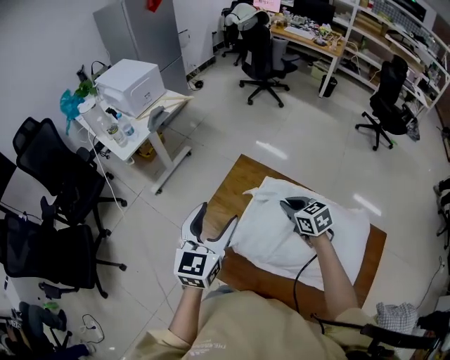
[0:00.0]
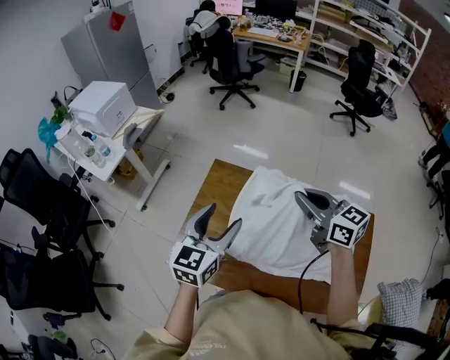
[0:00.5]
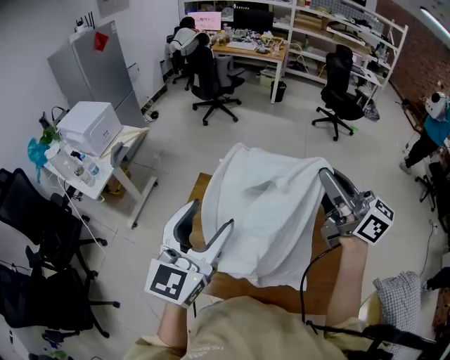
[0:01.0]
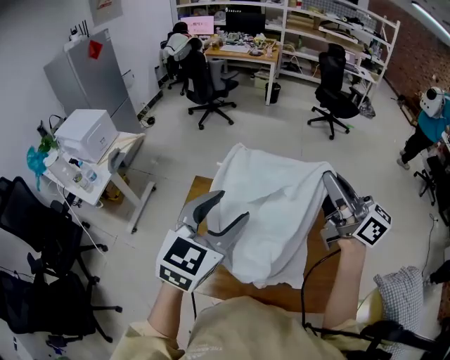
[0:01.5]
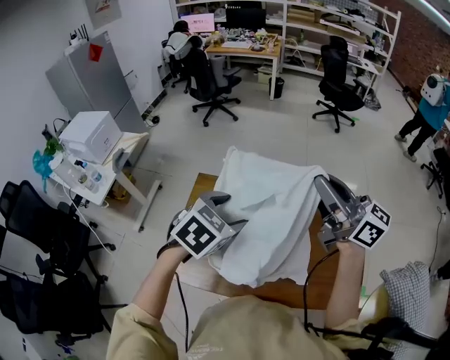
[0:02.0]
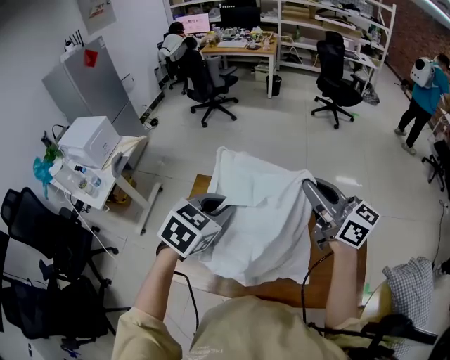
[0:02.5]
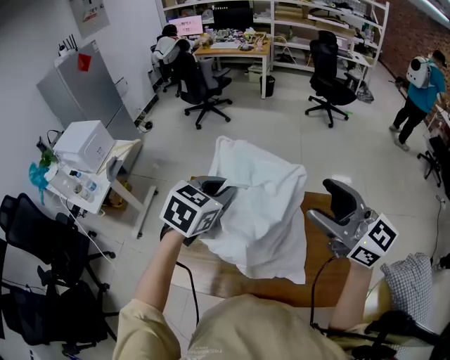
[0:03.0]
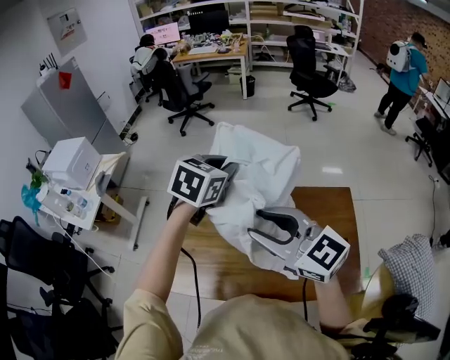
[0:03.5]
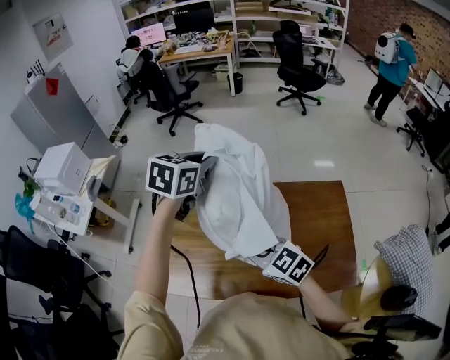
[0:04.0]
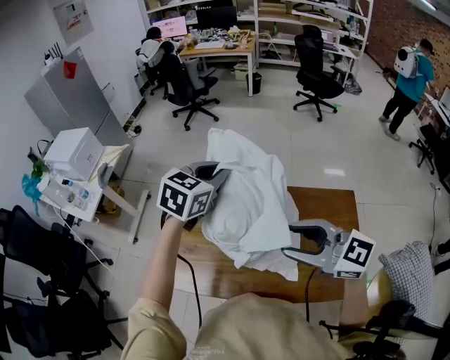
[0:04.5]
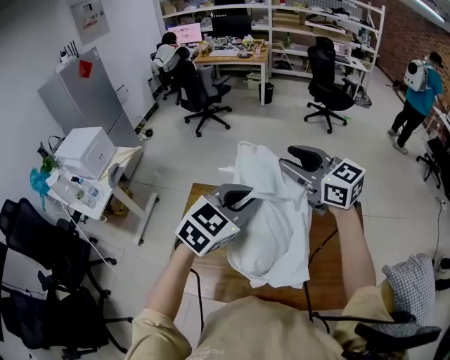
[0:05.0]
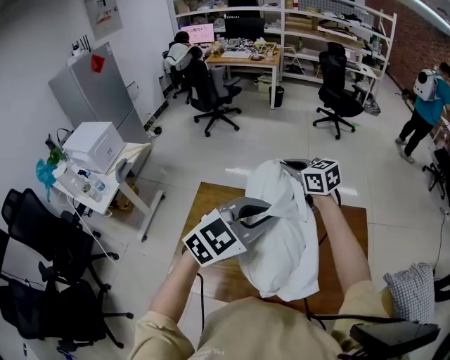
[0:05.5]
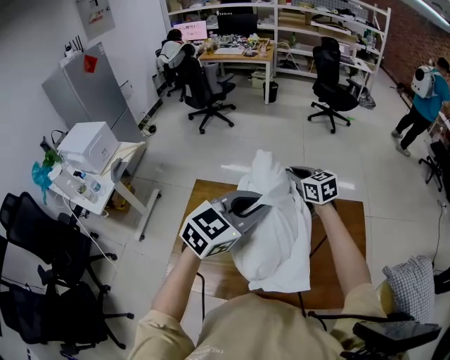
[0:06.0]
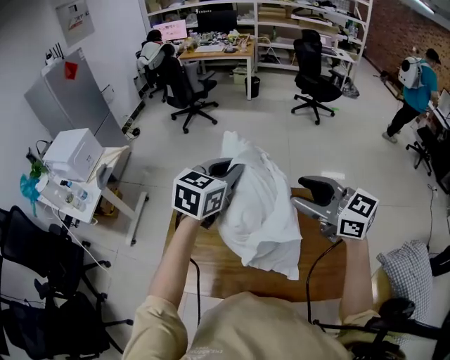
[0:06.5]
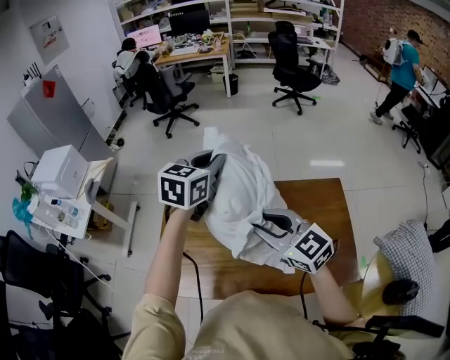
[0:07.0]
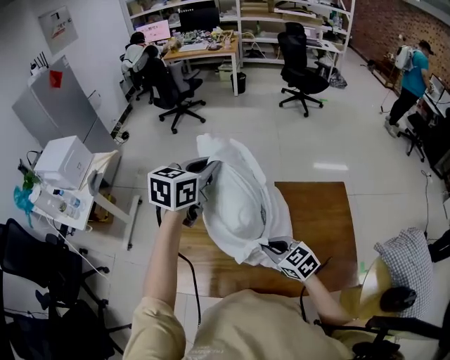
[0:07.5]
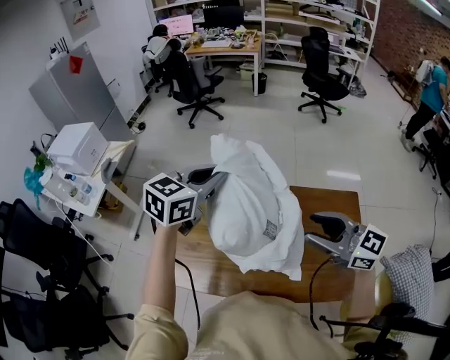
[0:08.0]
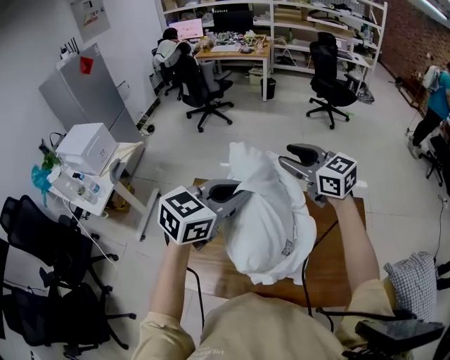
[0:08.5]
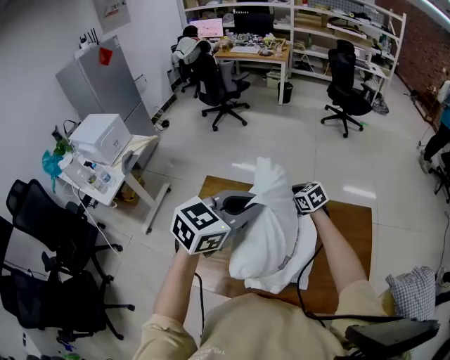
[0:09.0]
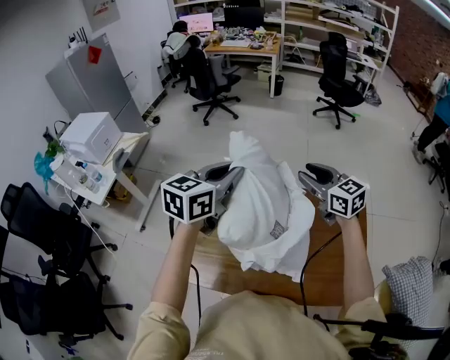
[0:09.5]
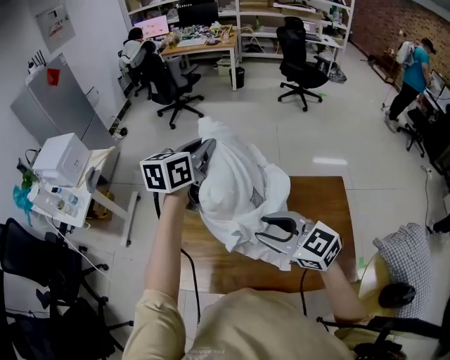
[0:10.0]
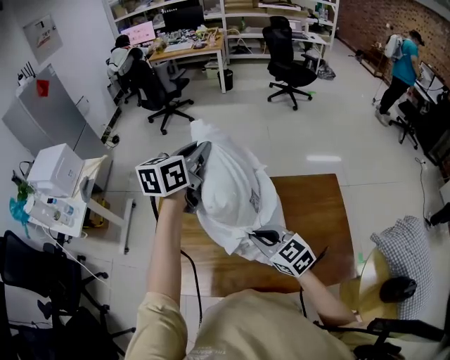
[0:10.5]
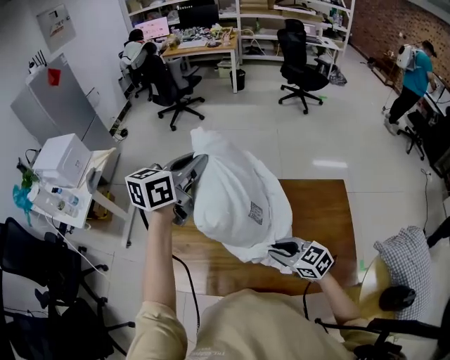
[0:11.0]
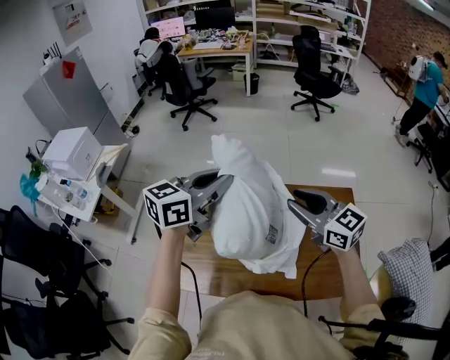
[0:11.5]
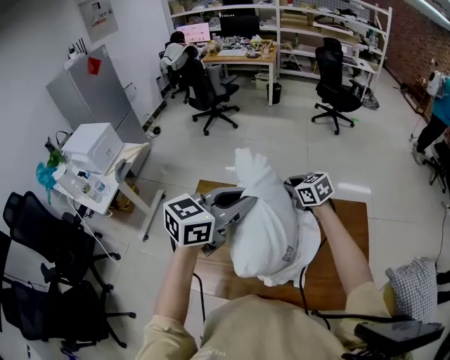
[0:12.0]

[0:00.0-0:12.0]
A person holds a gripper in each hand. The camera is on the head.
0:00.0 to 0:02.0: The left gripper heads to the right and backward, covering roughly 20 cm, and tips its fingers downward by roughly 50 degrees. Meanwhile the right gripper is displaced upward, backward and to the right by roughly 50 cm, and points its fingers approximately 60 degrees further upward.
0:02.0 to 0:04.0: The right gripper goes up and down, roughly 25 cm each way, reversing 2 times, points its fingers some 50 degrees further downward, and opens, then closes once more. The left gripper heads forward and upward, covering about 15 cm, turns by about 20 degrees, and closes.
0:04.0 to 0:06.0: The left gripper moves backward, some 15 cm, and turns by approximately 30 degrees. The right gripper heads forward and to the right, covering about 25 cm, swivels approximately 20 degrees, and opens, then closes again.
0:06.0 to 0:08.0: The right gripper moves up and down over about 30 cm, changing direction 2 times, and turns by roughly 30 degrees. The left gripper travels forward and to the left by roughly 15 cm.
0:08.0 to 0:10.0: The right gripper shifts approximately 10 cm to the left, and goes downward and returns, approximately 30 cm each way, while the left gripper heads forward, covering some 10 cm, and swivels about 20 degrees.
0:10.0 to 0:12.0: The left gripper is displaced backward and to the right by some 20 cm, and turns by roughly 20 degrees, while the right gripper moves up and down over some 25 cm, changing direction 2 times, and turns by roughly 20 degrees.

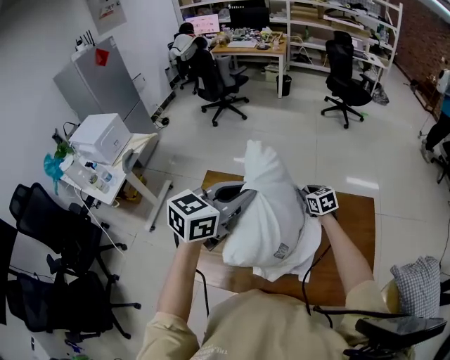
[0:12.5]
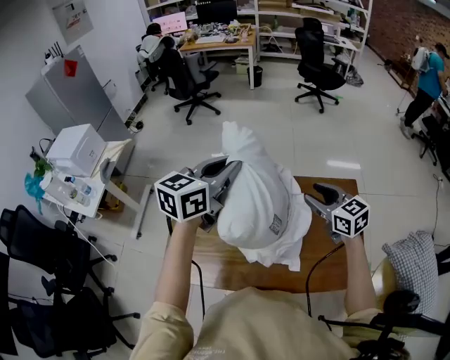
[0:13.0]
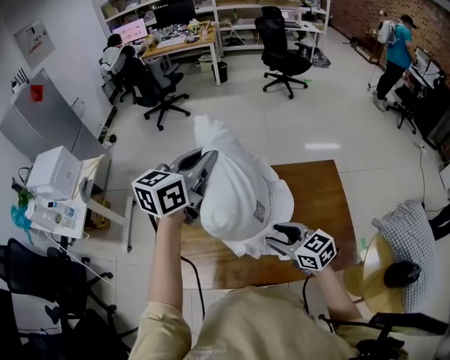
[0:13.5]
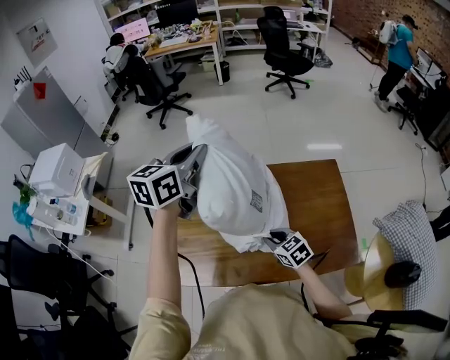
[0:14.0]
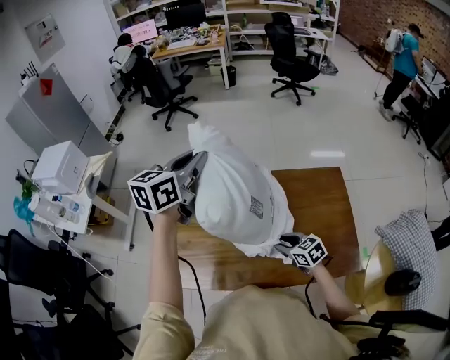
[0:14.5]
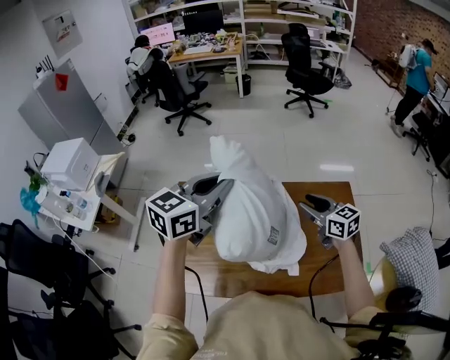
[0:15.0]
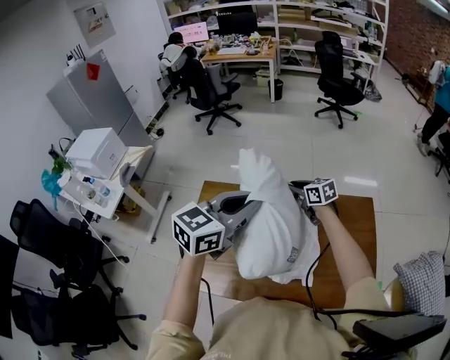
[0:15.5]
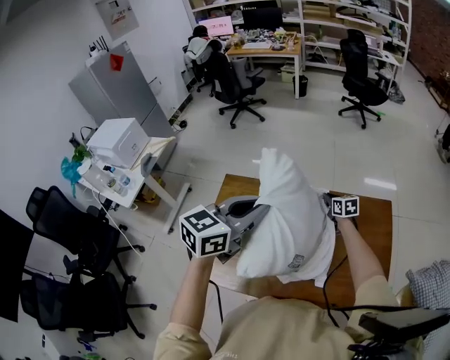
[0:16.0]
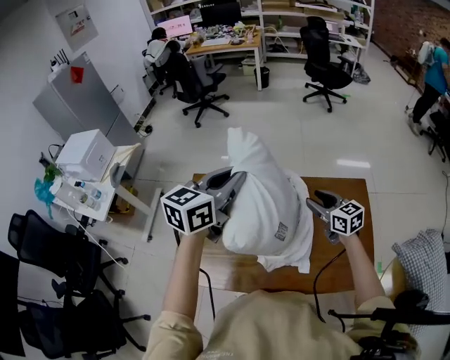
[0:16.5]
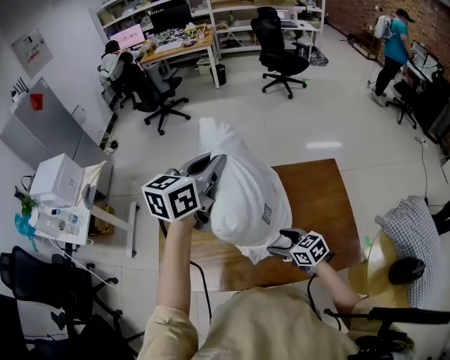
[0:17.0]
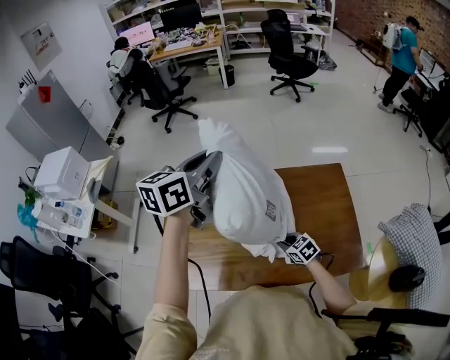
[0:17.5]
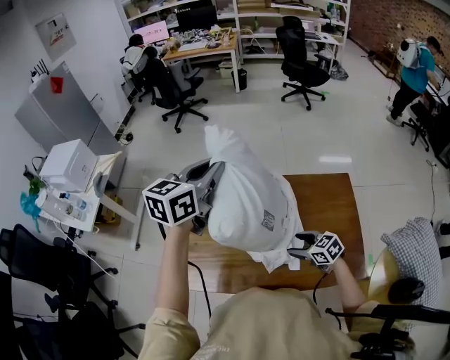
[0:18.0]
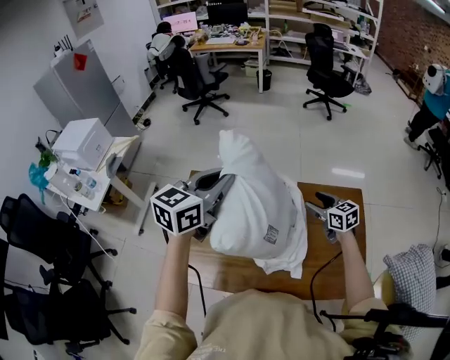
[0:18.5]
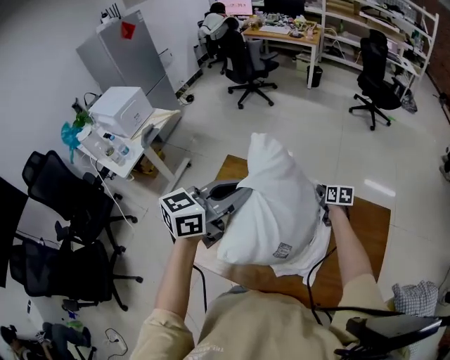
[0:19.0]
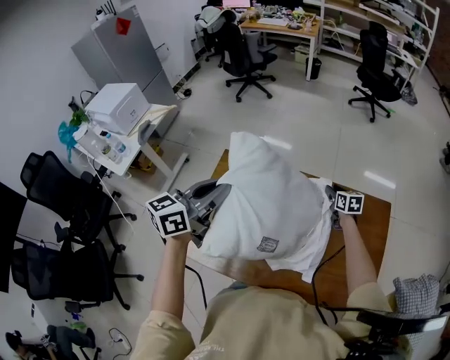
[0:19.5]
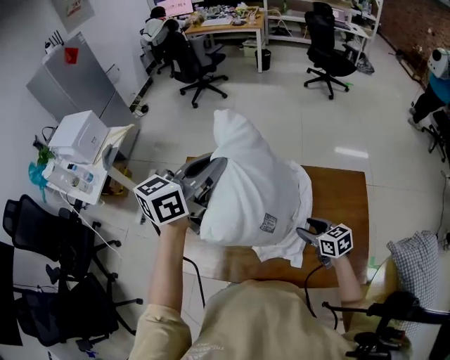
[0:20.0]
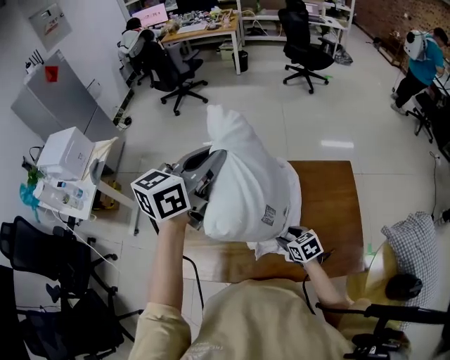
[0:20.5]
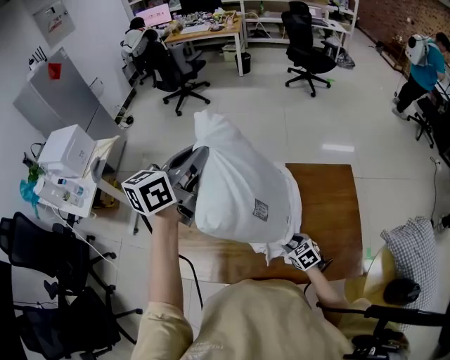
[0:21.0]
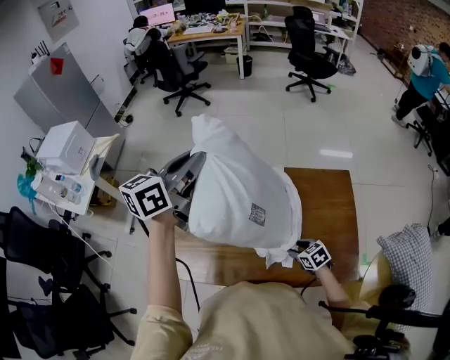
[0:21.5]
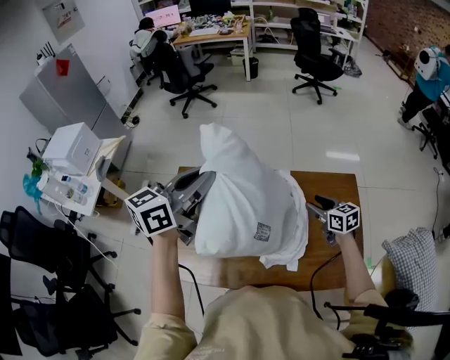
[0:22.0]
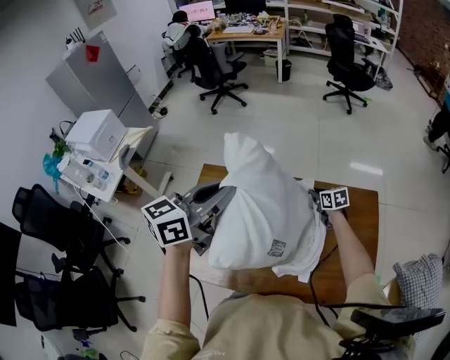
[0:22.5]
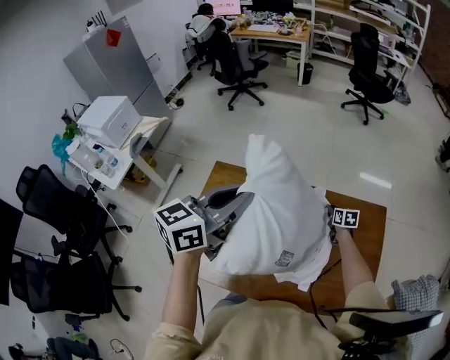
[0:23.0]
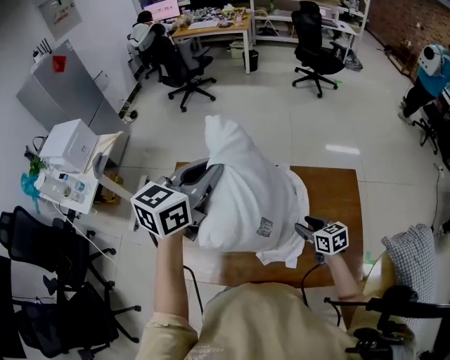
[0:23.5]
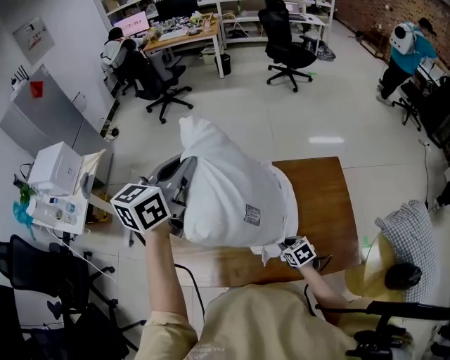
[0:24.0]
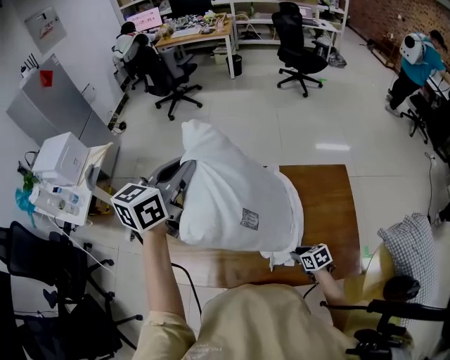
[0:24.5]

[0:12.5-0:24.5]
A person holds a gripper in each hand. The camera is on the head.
0:12.5 to 0:14.5: The left gripper shifts about 10 cm forward and to the left. Meanwhile the right gripper moves backward, roughly 25 cm.
0:14.5 to 0:16.5: The right gripper travels upward, forward and to the right by approximately 20 cm, and swivels roughly 20 degrees, while the left gripper heads to the right, covering some 5 cm.
0:16.5 to 0:18.5: The right gripper reaches roughly 25 cm downward, then returns.
0:18.5 to 0:20.5: The right gripper heads downward, backward and to the left, covering approximately 20 cm, changes its angle by some 20 degrees, and closes, then reopens; the left gripper moves upward, roughly 5 cm.
0:20.5 to 0:22.5: The right gripper goes approximately 25 cm forward, while the left gripper moves roughly 5 cm.
0:22.5 to 0:24.5: The right gripper goes some 30 cm backward; the left gripper shifts approximately 5 cm to the left.

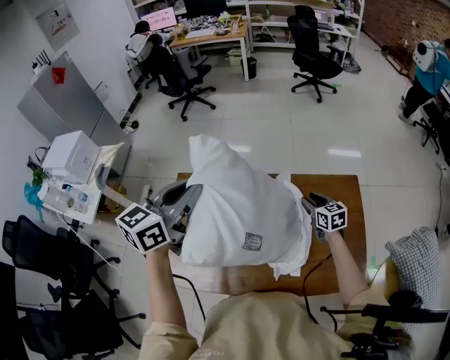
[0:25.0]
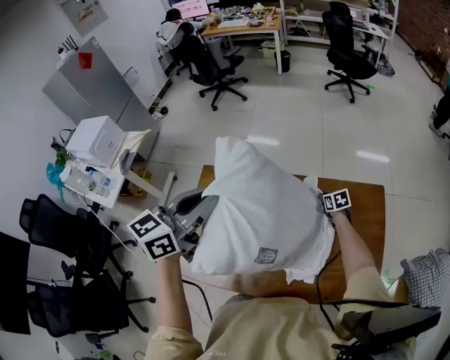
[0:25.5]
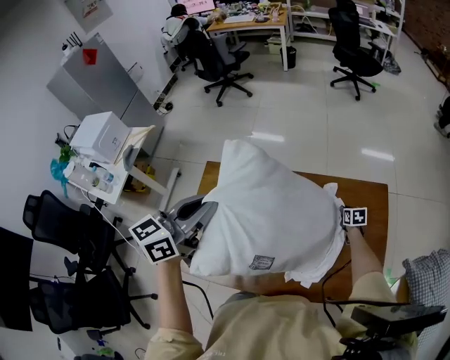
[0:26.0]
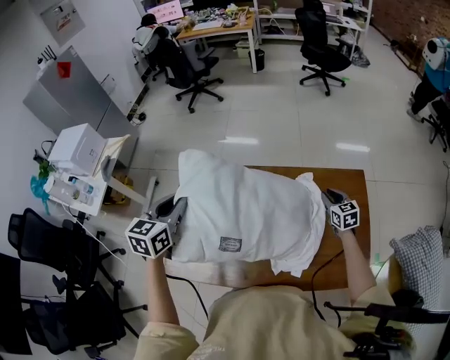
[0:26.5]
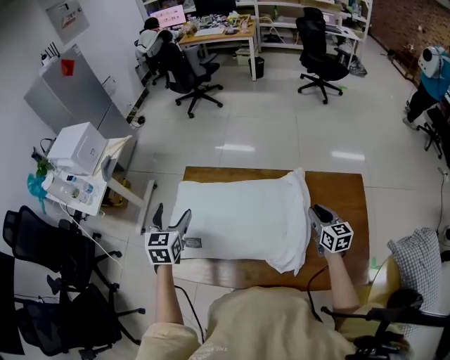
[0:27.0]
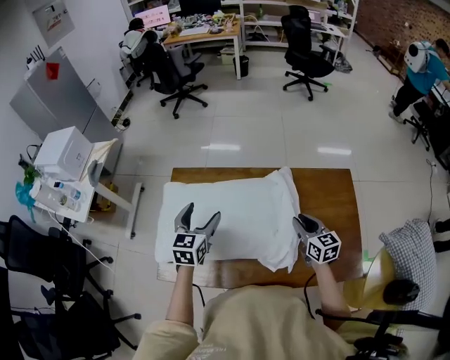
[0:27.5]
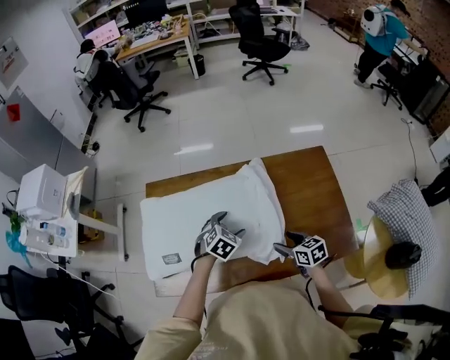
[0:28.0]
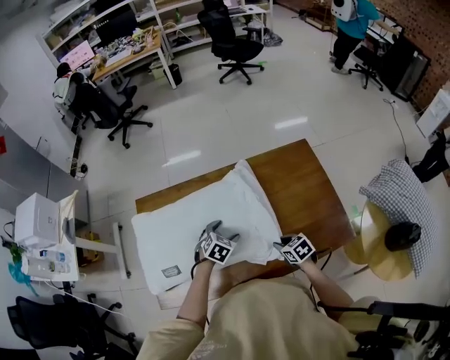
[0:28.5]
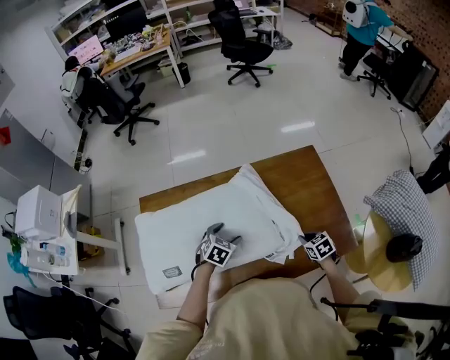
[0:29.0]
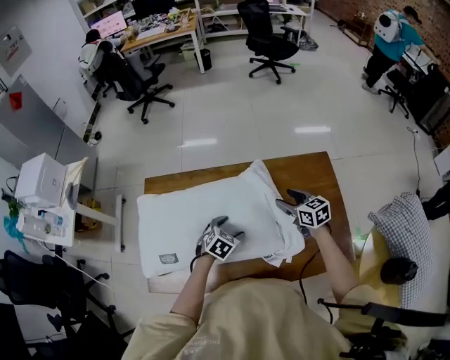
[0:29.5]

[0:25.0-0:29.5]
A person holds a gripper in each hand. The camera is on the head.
0:25.0 to 0:27.0: The left gripper heads downward and to the left, covering some 30 cm, swivels roughly 40 degrees, and opens. The right gripper shifts some 10 cm backward, and travels downward and back again, approximately 20 cm each way.
0:27.0 to 0:29.5: The left gripper heads to the right and downward, covering about 35 cm, and tilts its fingers about 30 degrees downward; the right gripper moves some 20 cm downward and comes back, and opens.
